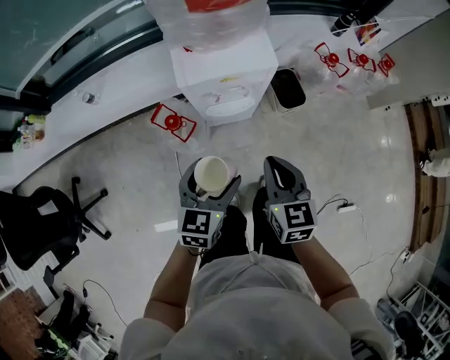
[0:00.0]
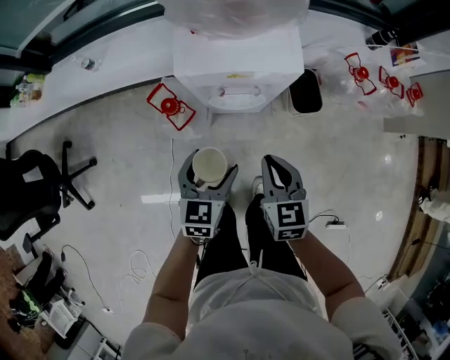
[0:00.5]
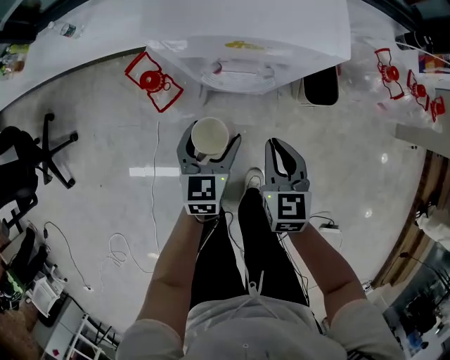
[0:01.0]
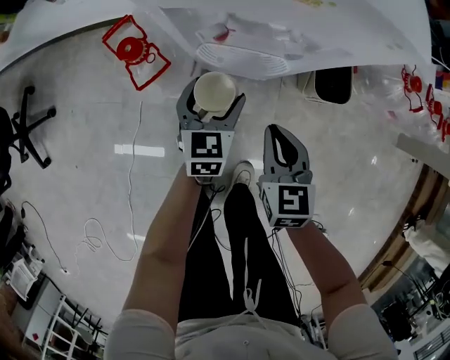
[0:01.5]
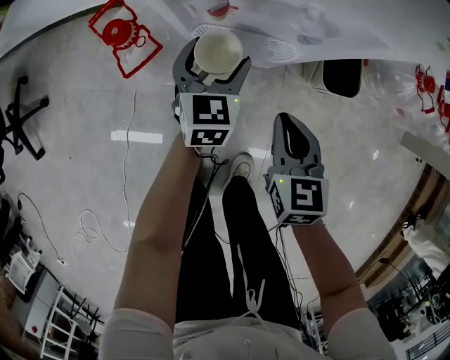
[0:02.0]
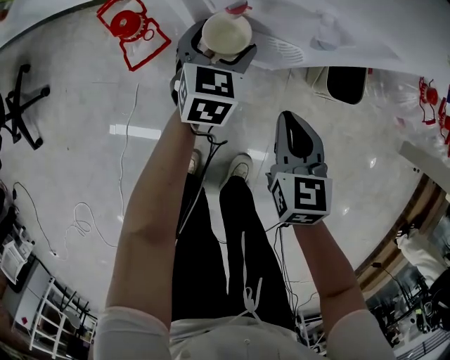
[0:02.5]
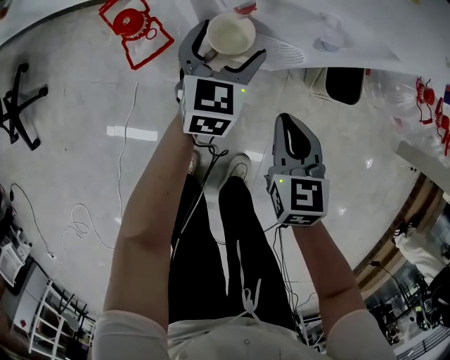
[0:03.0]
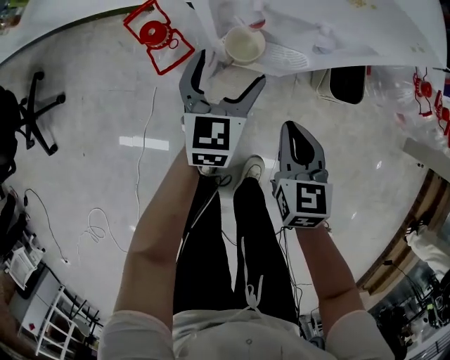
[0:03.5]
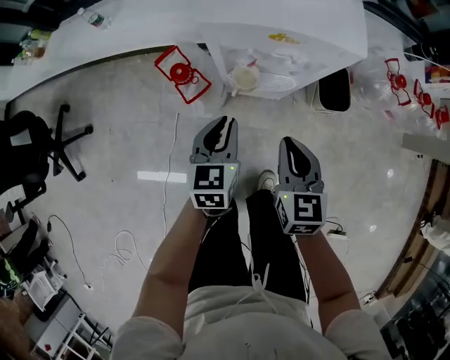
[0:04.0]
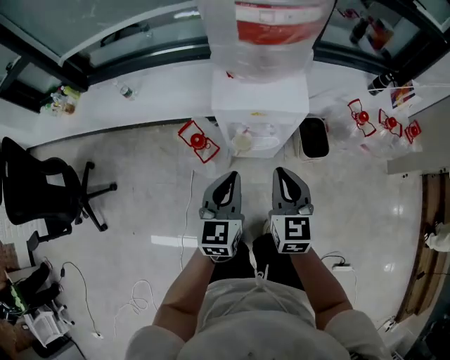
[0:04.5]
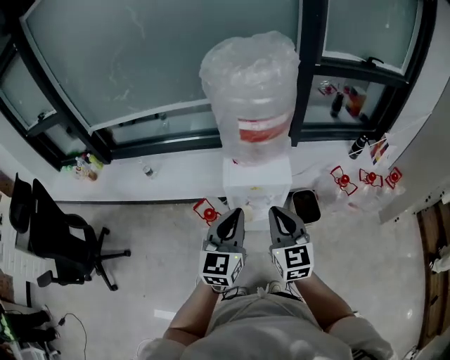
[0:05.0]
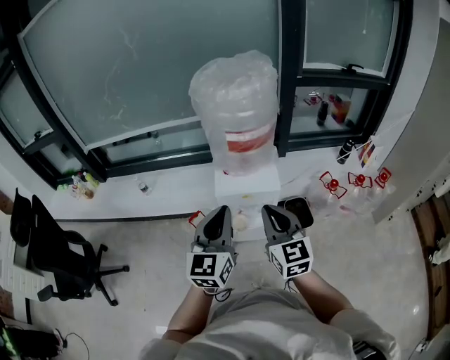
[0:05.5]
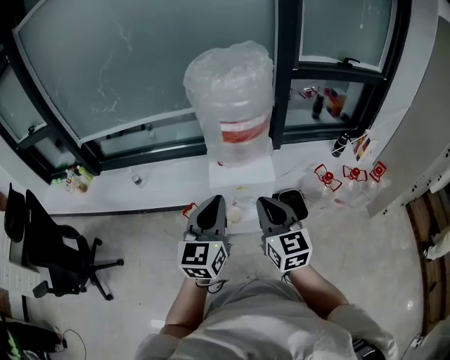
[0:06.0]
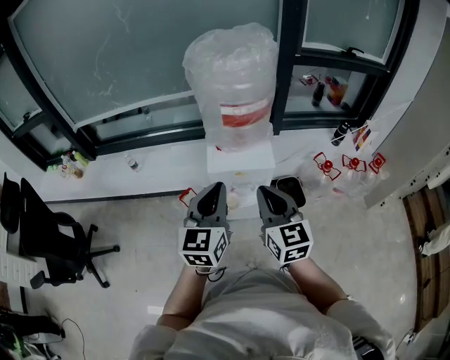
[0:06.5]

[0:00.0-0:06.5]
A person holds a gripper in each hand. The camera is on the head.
0:00.0 to 0:02.0: The right gripper moves downward, approximately 35 cm; the left gripper heads downward and forward, covering about 40 cm, and rotates about 30 degrees.
0:02.0 to 0:04.5: The left gripper moves upward and backward, about 40 cm, and closes its fingers. Meanwhile the right gripper is displaced upward by roughly 35 cm.
0:04.5 to 0:06.5: The two grippers go about 20 cm upward.

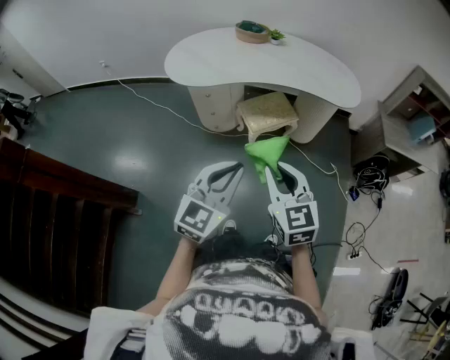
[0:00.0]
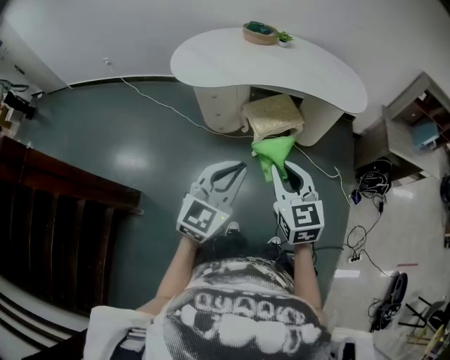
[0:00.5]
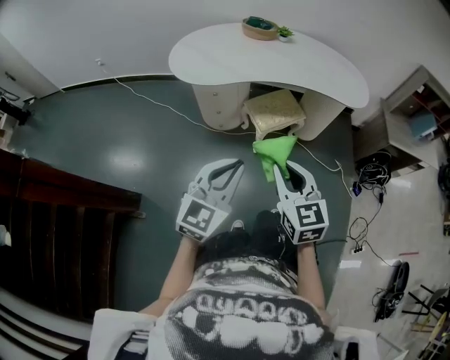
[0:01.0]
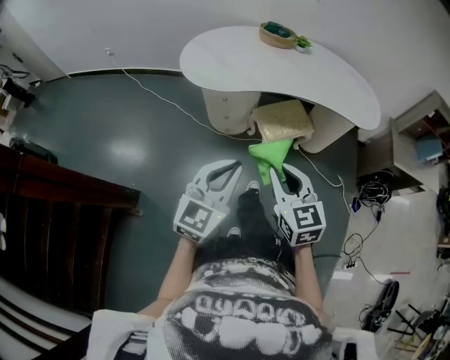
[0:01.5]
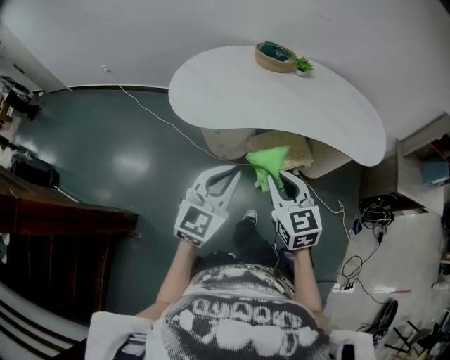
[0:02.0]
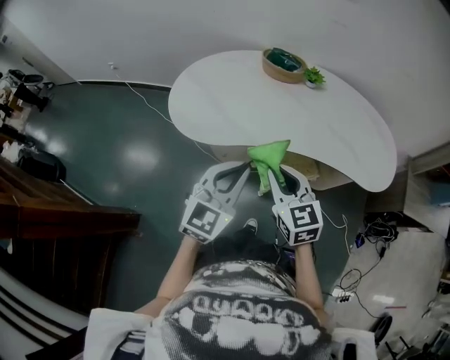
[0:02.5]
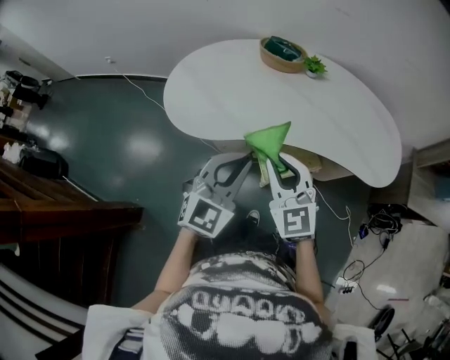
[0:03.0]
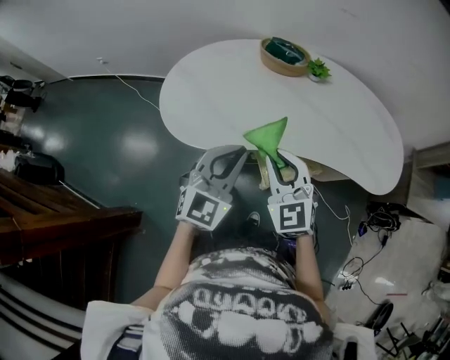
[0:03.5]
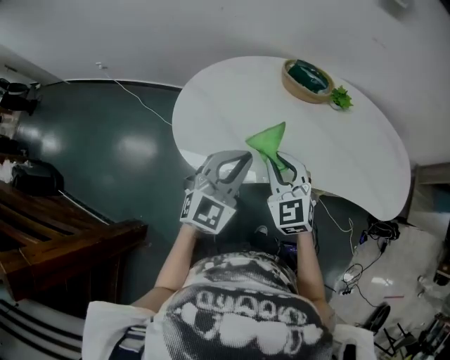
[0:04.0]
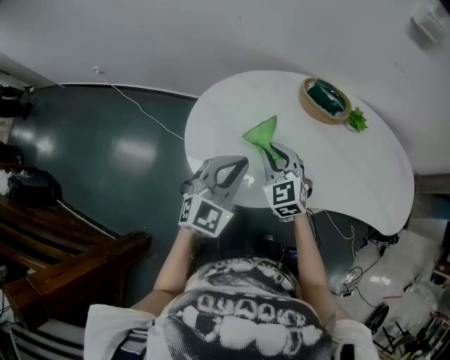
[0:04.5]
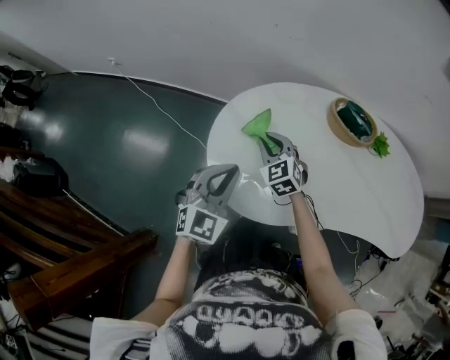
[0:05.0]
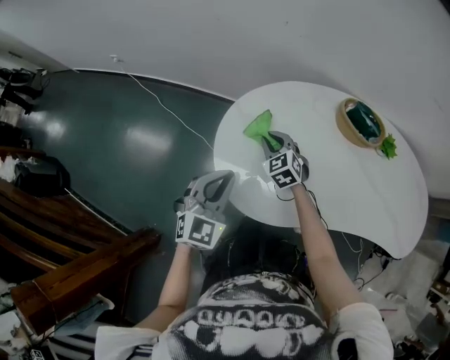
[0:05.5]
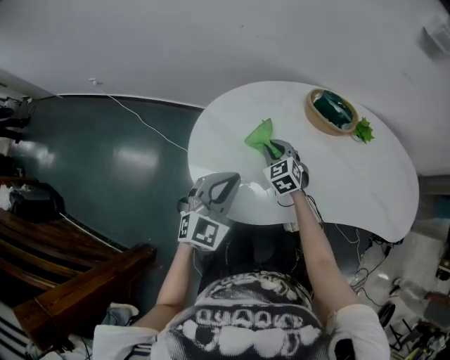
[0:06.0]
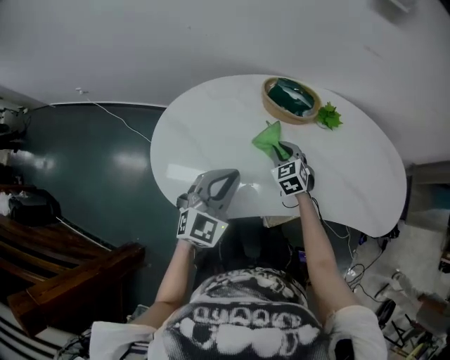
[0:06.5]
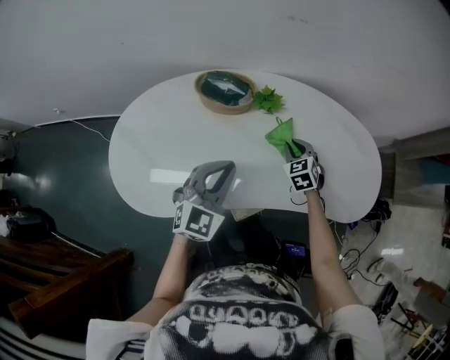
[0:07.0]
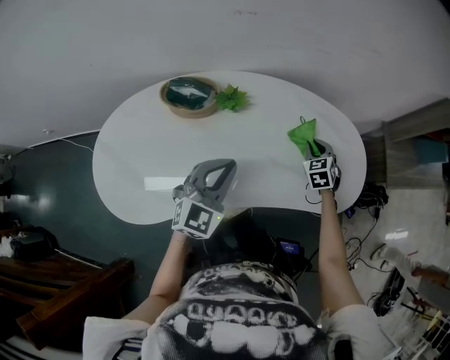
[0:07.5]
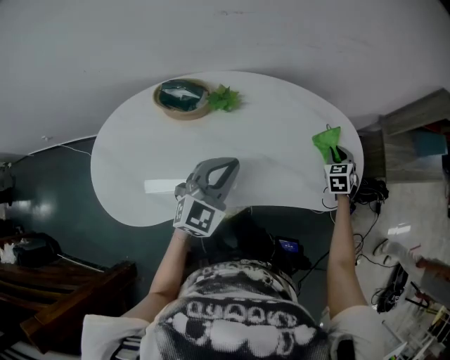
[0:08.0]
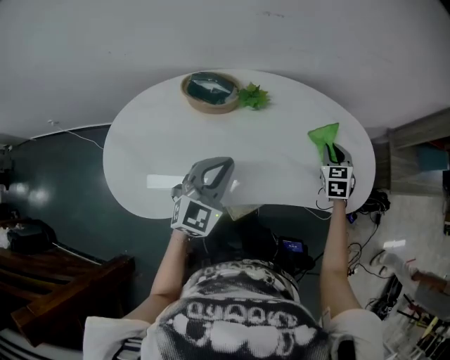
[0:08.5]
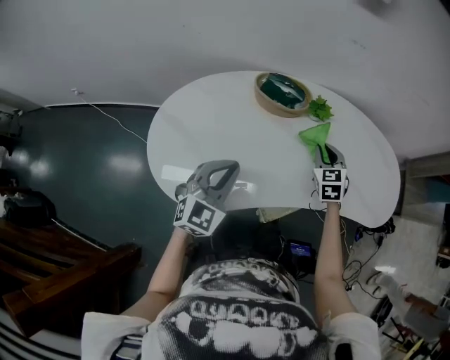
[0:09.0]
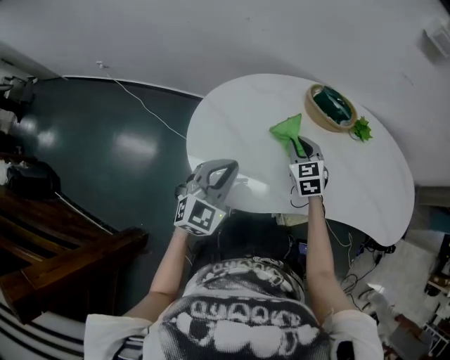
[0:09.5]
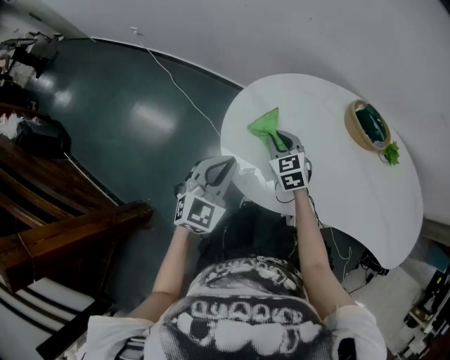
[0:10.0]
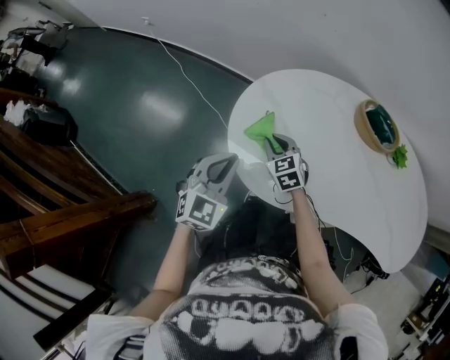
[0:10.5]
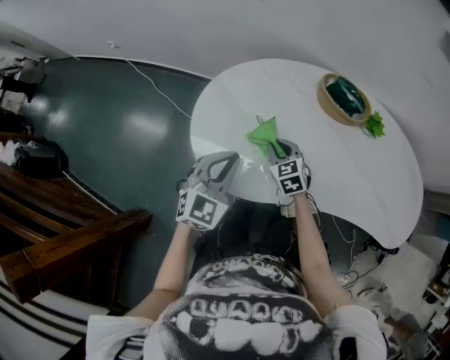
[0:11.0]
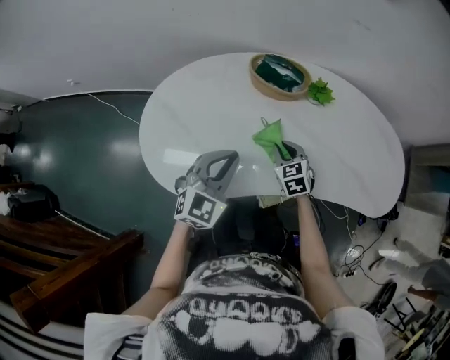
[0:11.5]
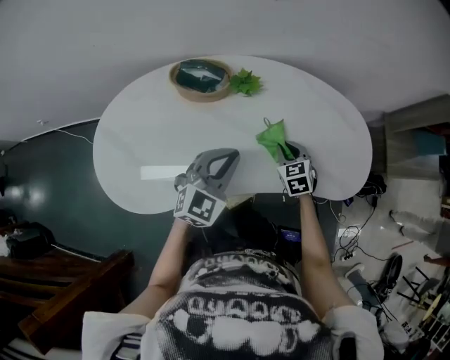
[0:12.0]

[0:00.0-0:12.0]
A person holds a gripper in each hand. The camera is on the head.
0:00.0 to 0:02.0: Both grippers move forward, roughly 25 cm.
0:02.0 to 0:04.0: The two grippers go about 30 cm forward. The right gripper turns by about 20 degrees.
0:04.0 to 0:06.0: The right gripper heads forward, downward and to the left, covering roughly 30 cm, and turns by approximately 20 degrees. Meanwhile the left gripper moves to the left, forward and downward, about 20 cm.
0:06.0 to 0:08.0: The two grippers travel together, roughly 60 cm. The right gripper turns by roughly 40 degrees.
0:08.0 to 0:10.0: The pair of grippers is taken about 70 cm. The left gripper swivels some 30 degrees; the right gripper rotates approximately 50 degrees.
0:10.0 to 0:12.0: The two grippers travel together, roughly 60 cm. The right gripper rotates some 30 degrees. Meanwhile the left gripper swivels about 30 degrees.

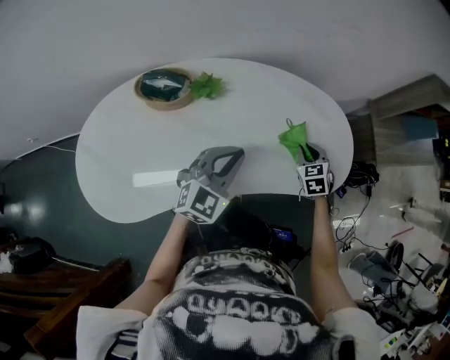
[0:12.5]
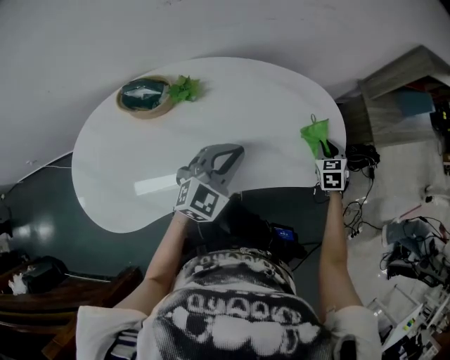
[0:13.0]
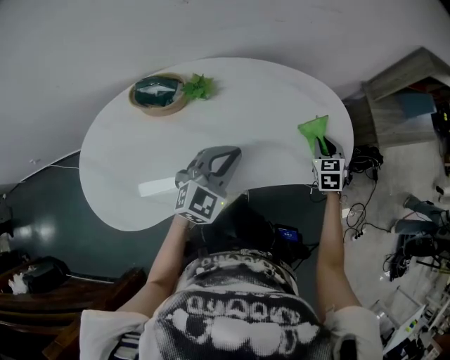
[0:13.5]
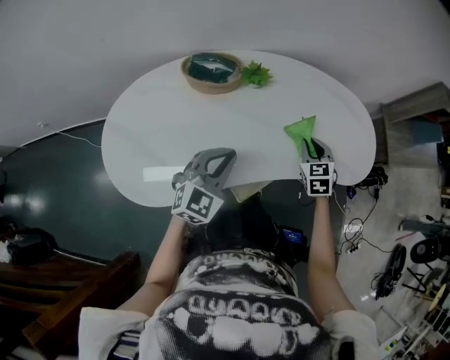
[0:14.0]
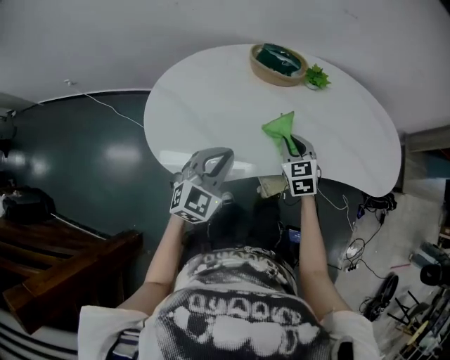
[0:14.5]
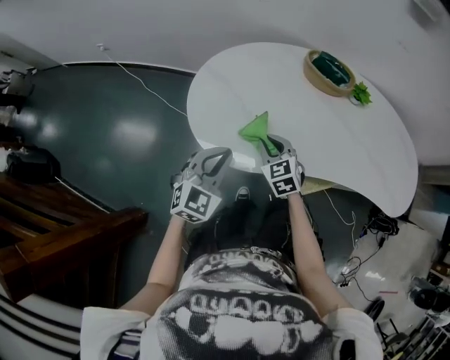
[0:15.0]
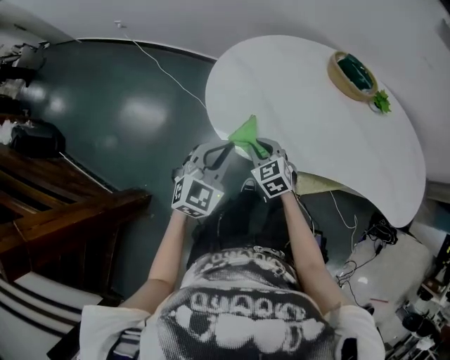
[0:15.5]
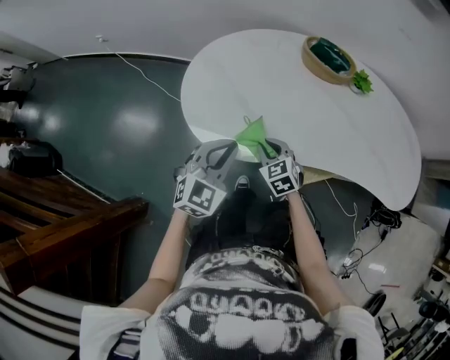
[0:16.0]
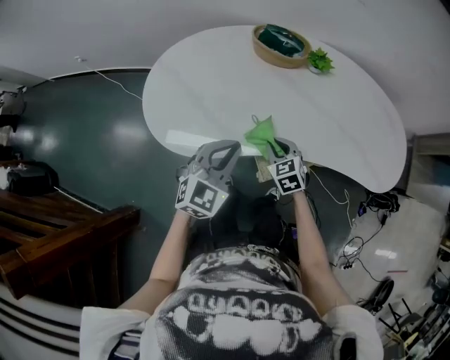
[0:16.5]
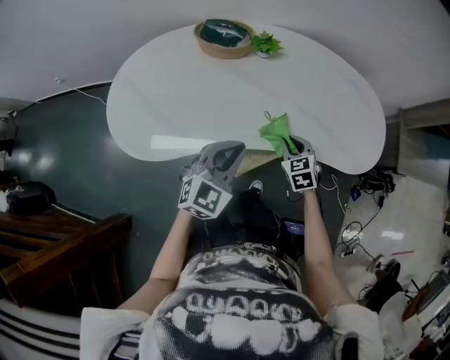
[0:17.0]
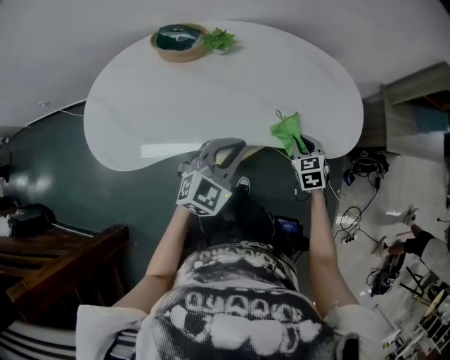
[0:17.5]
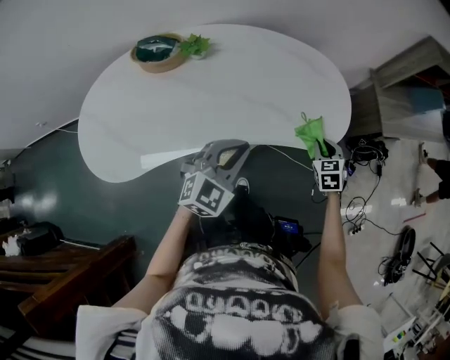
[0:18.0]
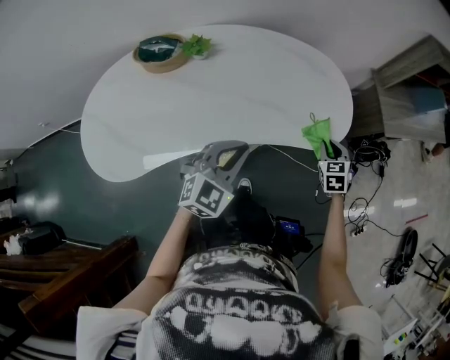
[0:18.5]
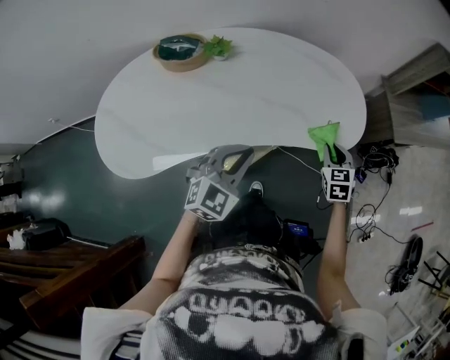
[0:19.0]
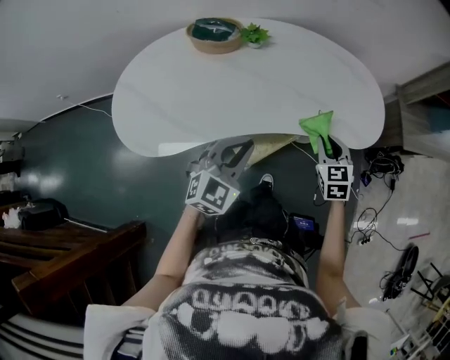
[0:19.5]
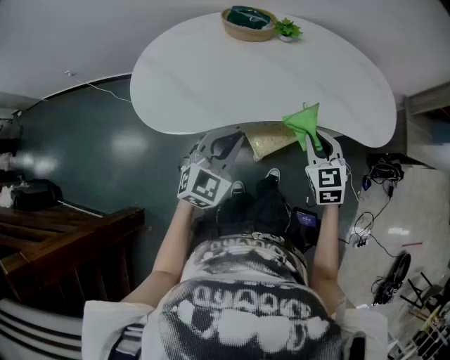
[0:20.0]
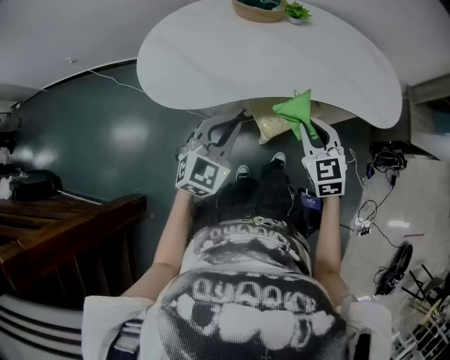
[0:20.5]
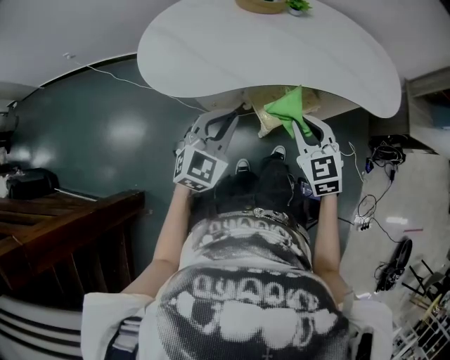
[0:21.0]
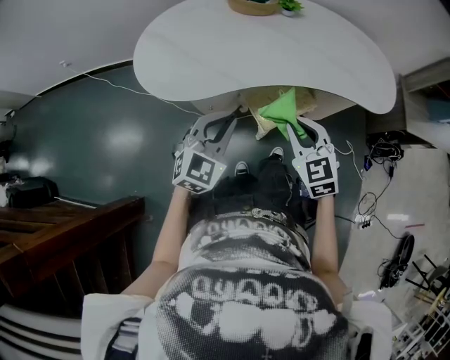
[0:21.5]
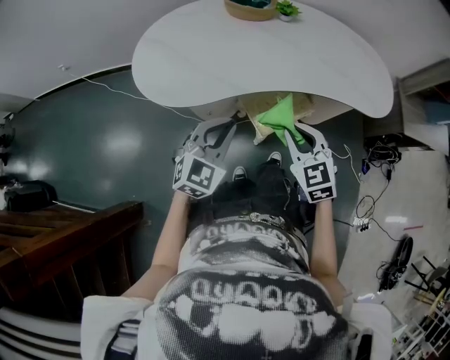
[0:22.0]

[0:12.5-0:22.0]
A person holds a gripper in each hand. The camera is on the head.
0:12.5 to 0:14.5: The right gripper shifts by approximately 40 cm; the left gripper moves some 40 cm.
0:16.5 to 0:18.0: The left gripper moves some 35 cm, and changes its angle by approximately 20 degrees. The right gripper shifts by approximately 50 cm, and turns by about 40 degrees.
0:18.0 to 0:20.0: The right gripper moves to the left, backward and upward, approximately 40 cm, and changes its angle by approximately 30 degrees. Meanwhile the left gripper moves to the left and backward, approximately 30 cm.
0:20.0 to 0:22.0: The left gripper goes about 10 cm backward; the right gripper travels backward and to the left by about 15 cm.
